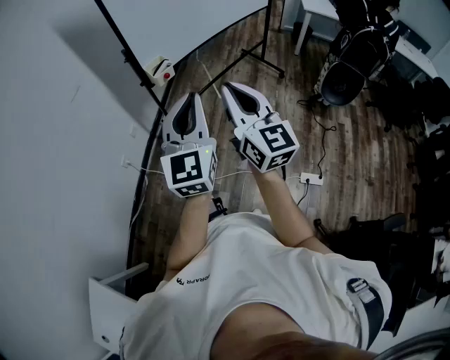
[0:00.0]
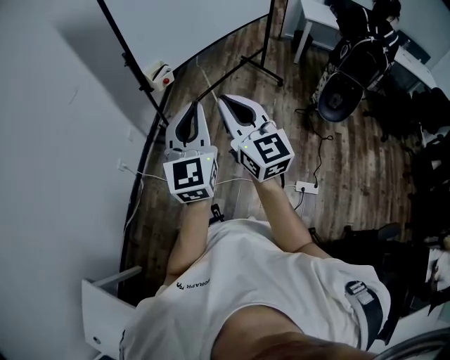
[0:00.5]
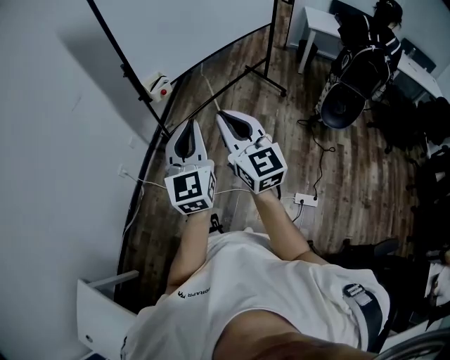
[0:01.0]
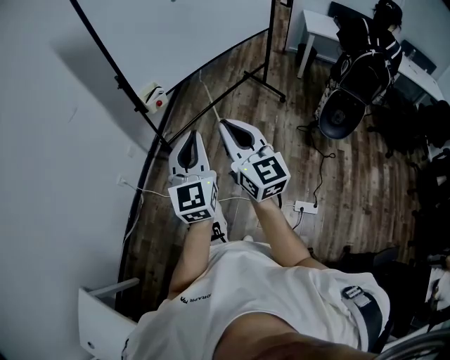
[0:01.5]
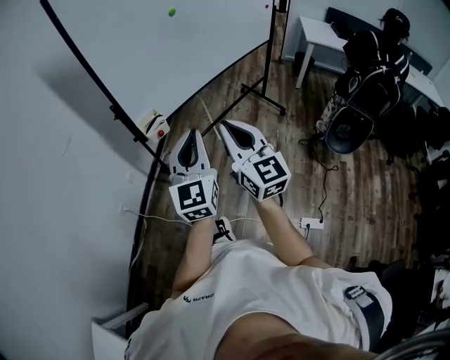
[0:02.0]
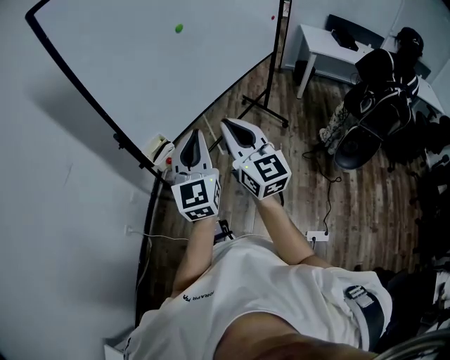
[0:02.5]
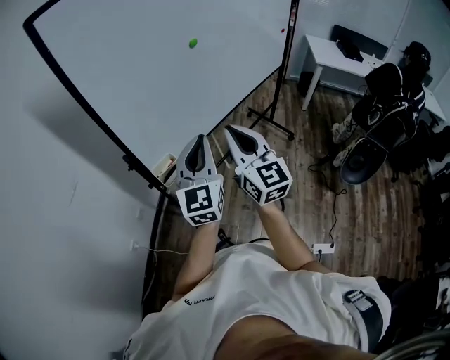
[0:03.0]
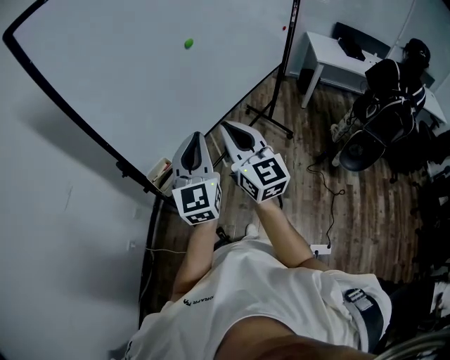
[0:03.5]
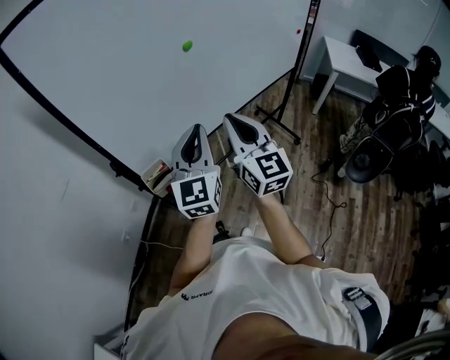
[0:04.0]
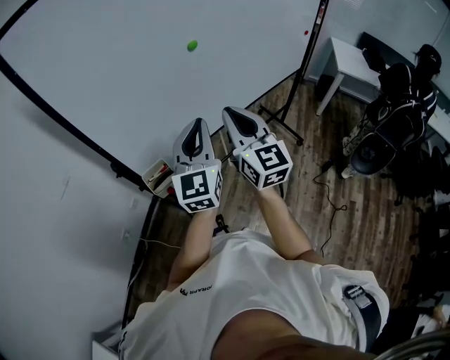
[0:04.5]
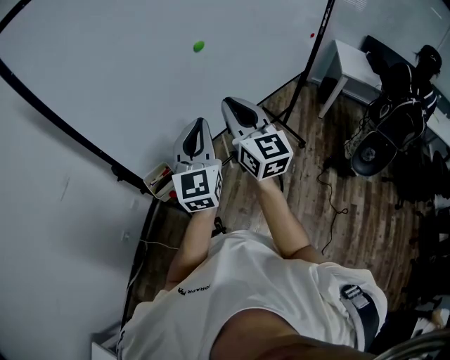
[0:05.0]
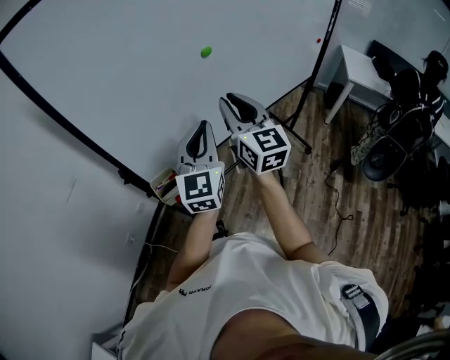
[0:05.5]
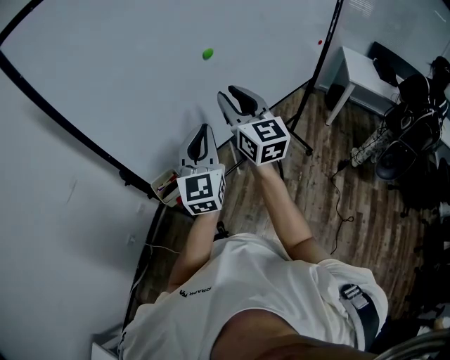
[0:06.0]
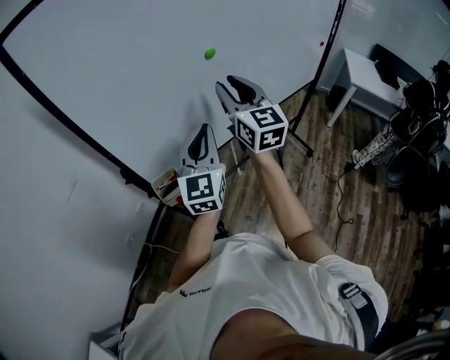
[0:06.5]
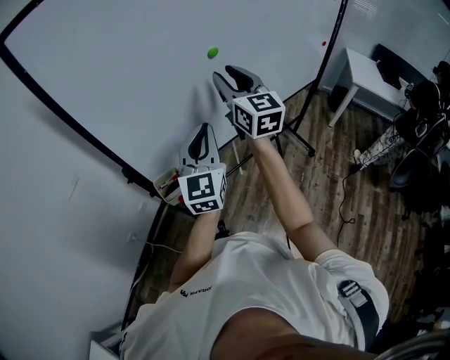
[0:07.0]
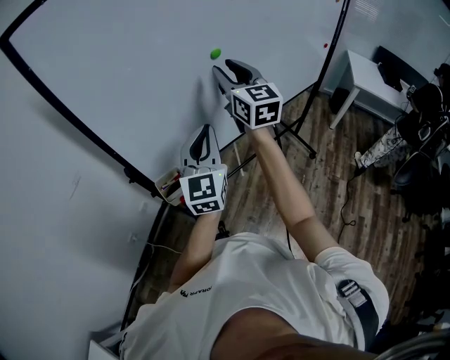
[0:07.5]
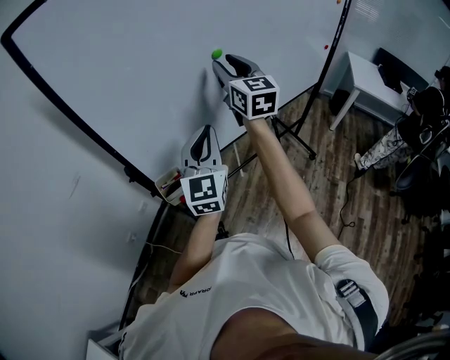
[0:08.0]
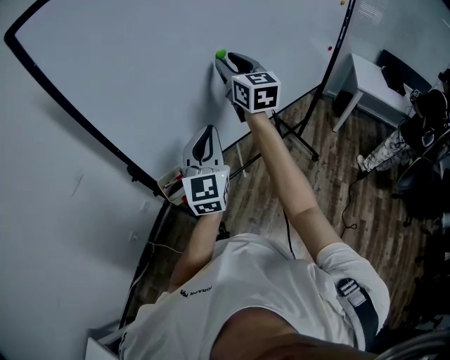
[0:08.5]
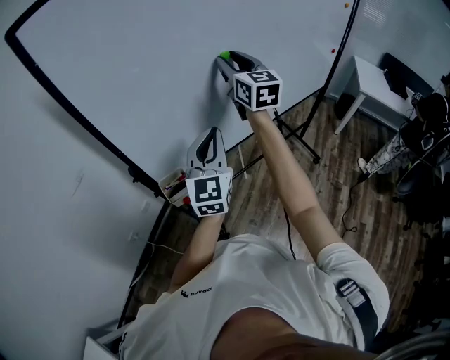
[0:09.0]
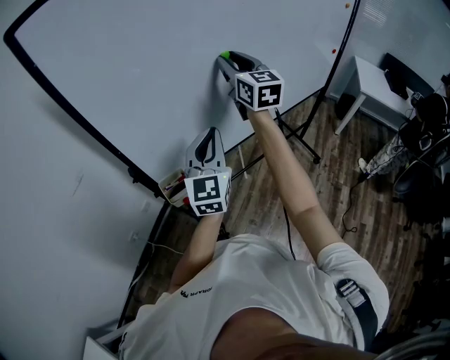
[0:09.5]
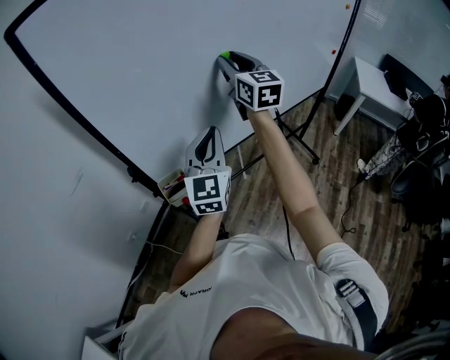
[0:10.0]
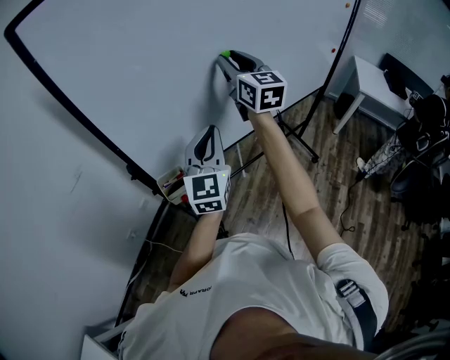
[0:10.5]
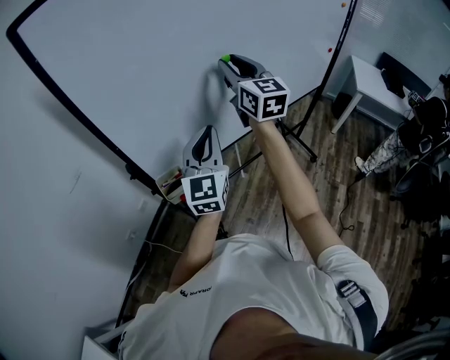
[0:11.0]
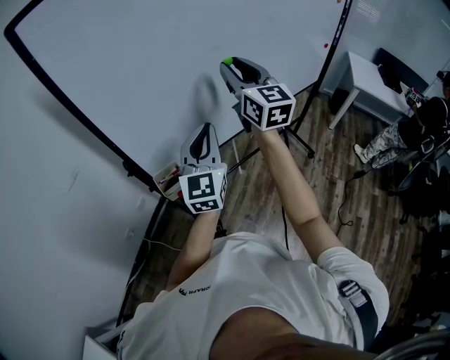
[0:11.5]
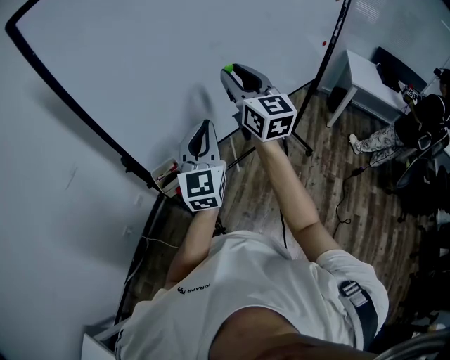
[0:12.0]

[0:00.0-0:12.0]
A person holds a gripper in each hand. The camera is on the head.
0:00.0 to 0:02.0: The two grippers go approximately 20 cm forward.
0:02.0 to 0:04.0: Both grippers move forward, some 30 cm.
0:04.0 to 0:06.0: The left gripper travels forward by roughly 5 cm, while the right gripper goes some 15 cm forward, and opens.
0:06.0 to 0:08.0: The right gripper heads forward, covering about 10 cm.
0:08.0 to 0:10.0: The grippers make only small movements.
0:10.0 to 0:12.0: The right gripper is displaced backward by about 10 cm.

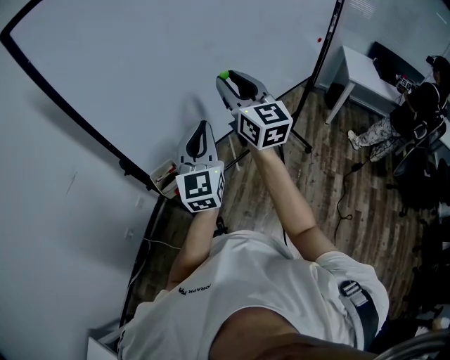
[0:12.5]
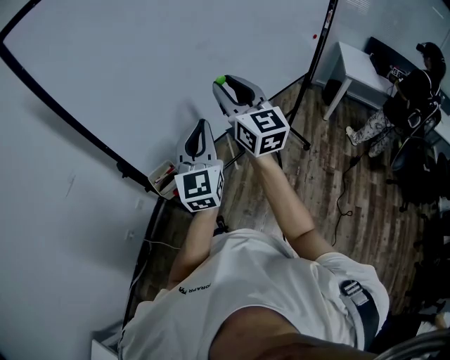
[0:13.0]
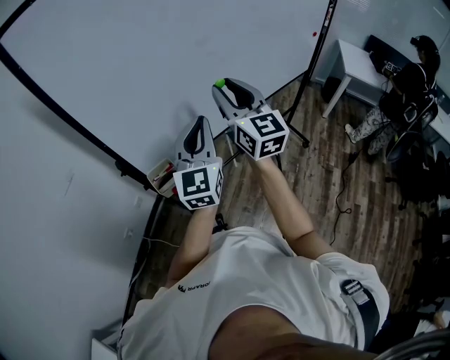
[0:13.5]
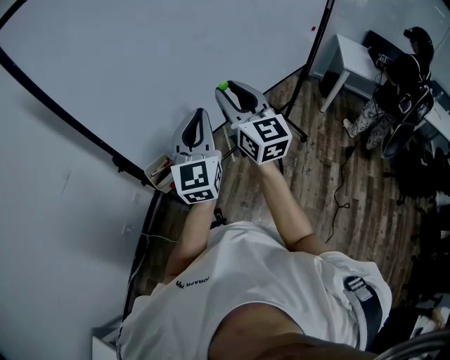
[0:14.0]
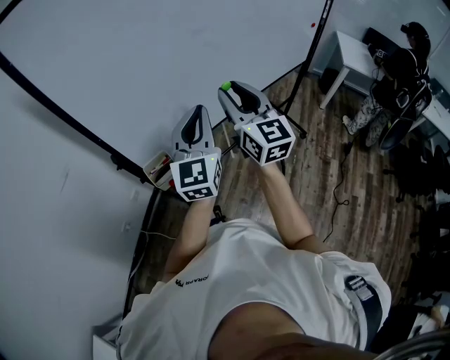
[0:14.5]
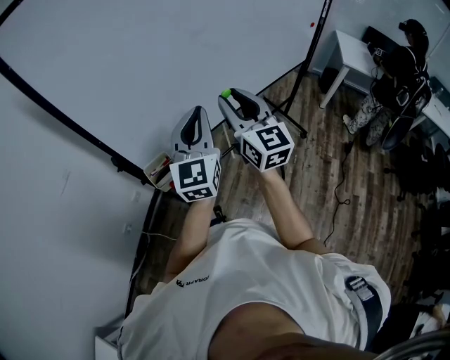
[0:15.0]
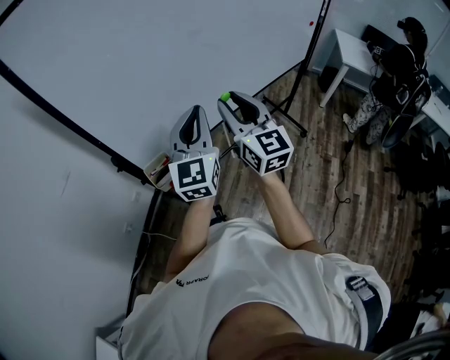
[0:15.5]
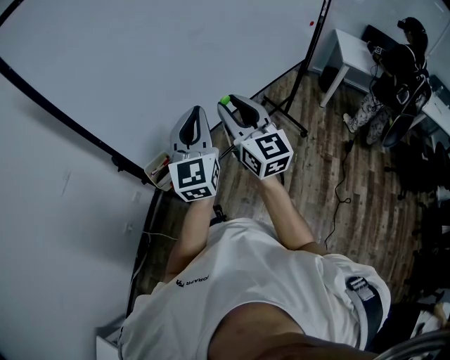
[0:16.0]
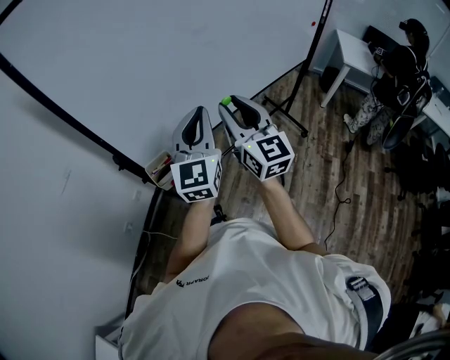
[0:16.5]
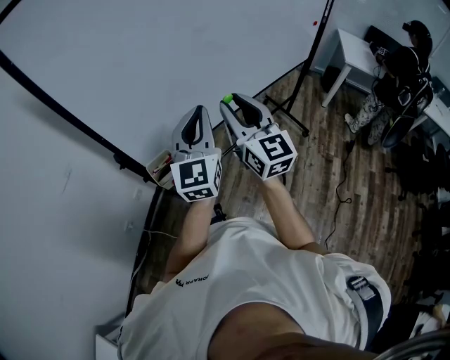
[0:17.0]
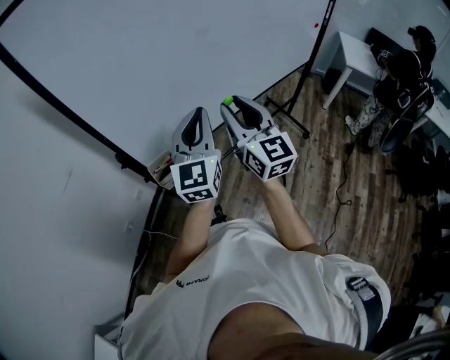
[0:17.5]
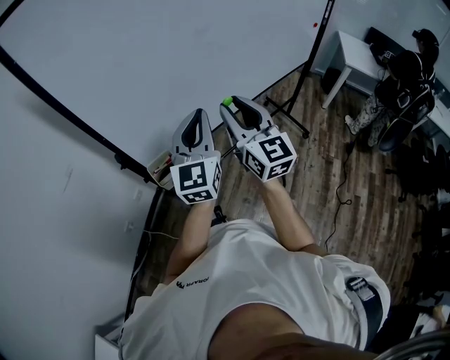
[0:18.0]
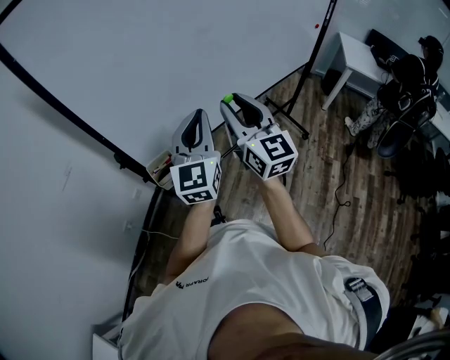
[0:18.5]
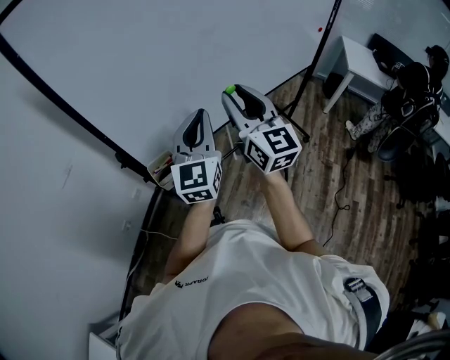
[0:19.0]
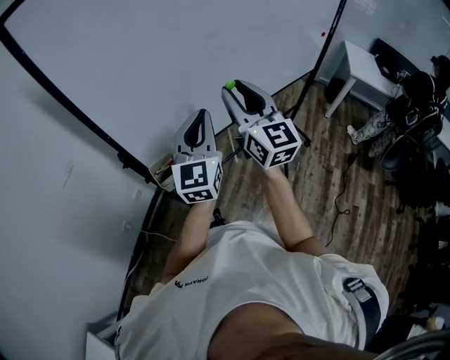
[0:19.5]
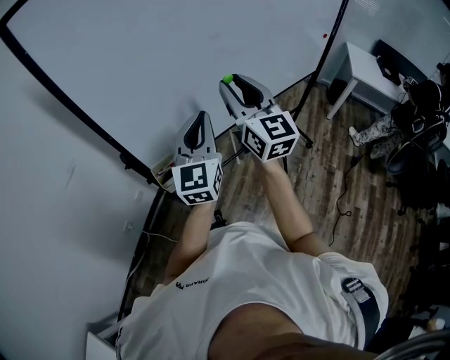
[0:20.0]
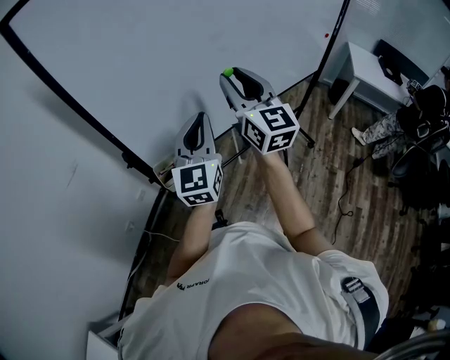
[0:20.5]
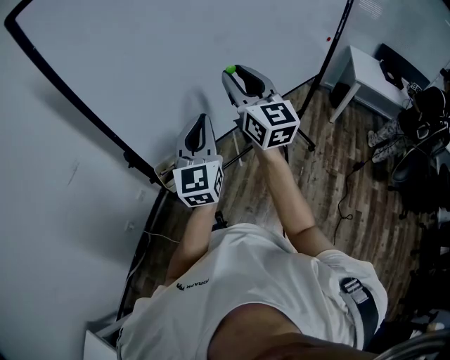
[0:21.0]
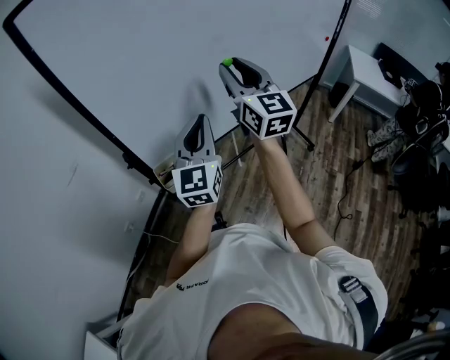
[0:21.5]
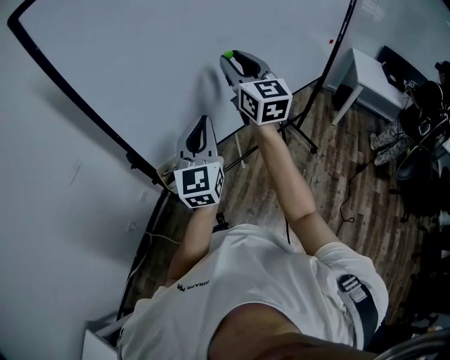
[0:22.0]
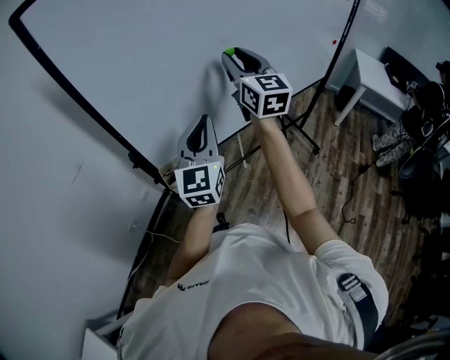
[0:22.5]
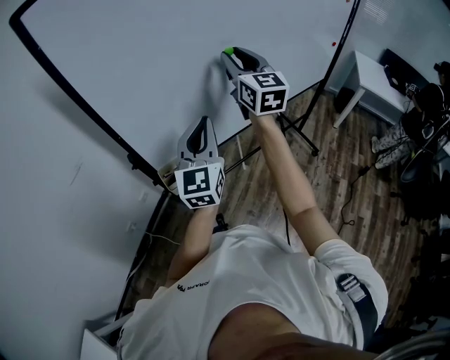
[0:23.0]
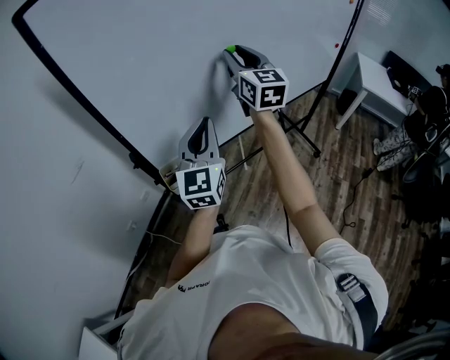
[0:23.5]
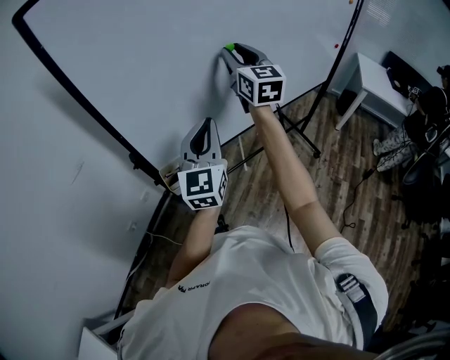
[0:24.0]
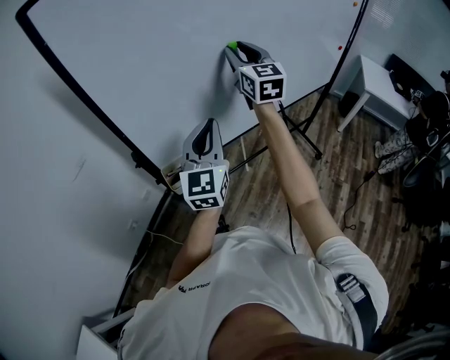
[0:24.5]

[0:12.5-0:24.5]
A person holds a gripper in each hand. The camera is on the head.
0:12.5 to 0:14.5: The right gripper changes place by roughly 5 cm.
0:14.5 to 0:16.5: The grippers make only small movements.
0:16.5 to 0:18.5: Neither gripper changes place.
0:18.5 to 0:20.5: The right gripper shifts approximately 10 cm upward and forward.
0:20.5 to 0:22.5: The right gripper heads forward, covering roughly 10 cm.
0:22.5 to 0:24.5: The right gripper shifts about 5 cm forward.

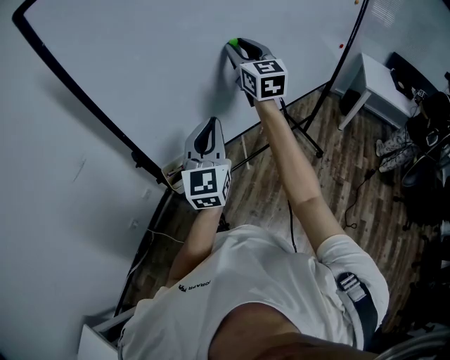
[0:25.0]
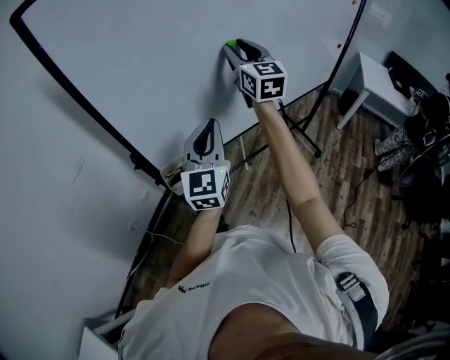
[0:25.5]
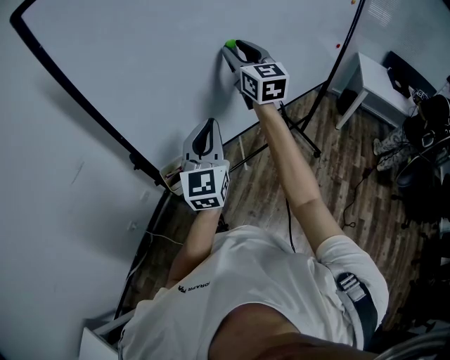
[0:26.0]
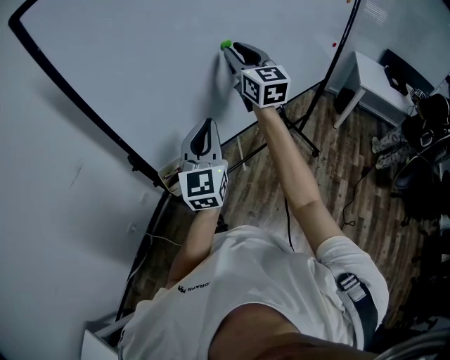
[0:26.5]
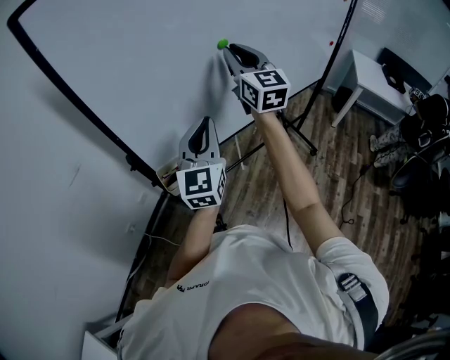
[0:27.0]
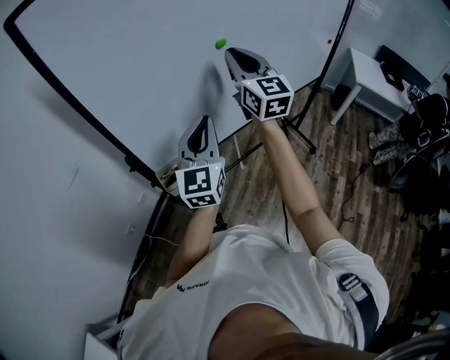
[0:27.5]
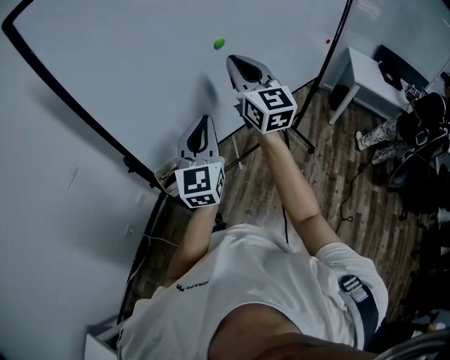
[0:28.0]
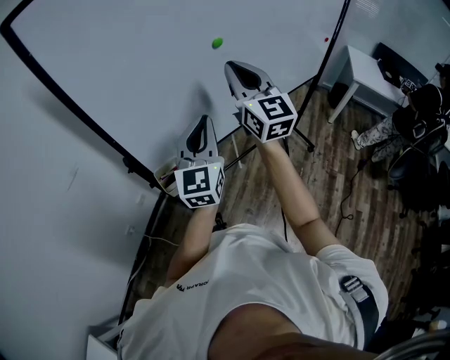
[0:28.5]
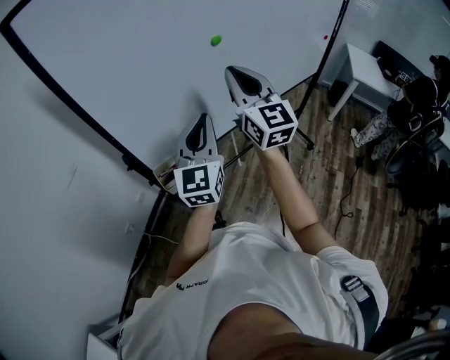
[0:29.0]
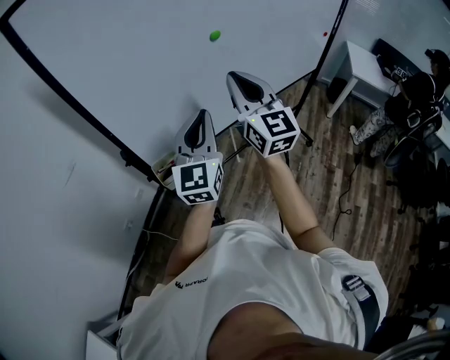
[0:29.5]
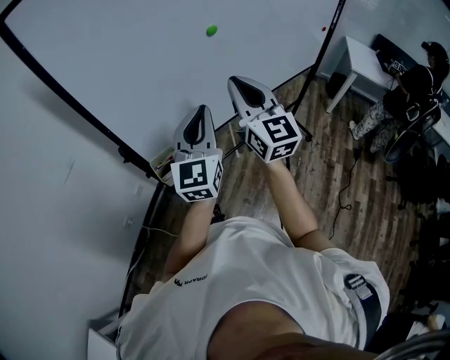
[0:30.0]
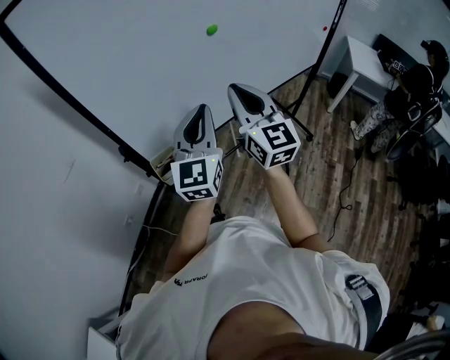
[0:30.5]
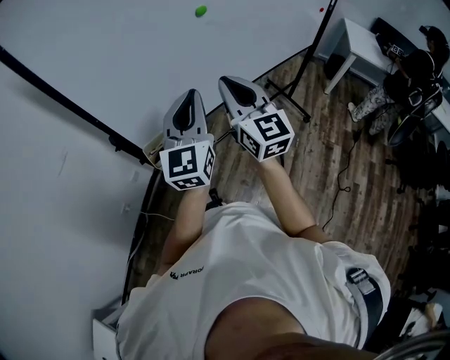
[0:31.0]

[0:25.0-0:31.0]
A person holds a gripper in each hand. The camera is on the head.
0:25.0 to 0:27.0: The grippers stay close to where they were, moving slightly.
0:27.0 to 0:29.0: The right gripper travels backward by approximately 10 cm.
0:29.0 to 0:31.0: The right gripper moves downward and backward, some 10 cm.
